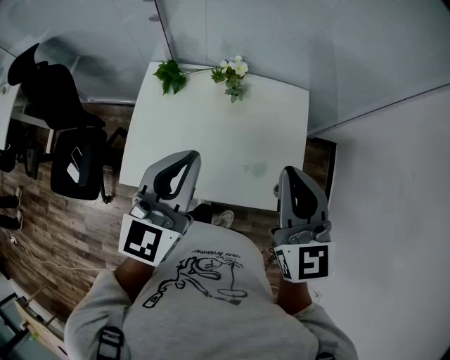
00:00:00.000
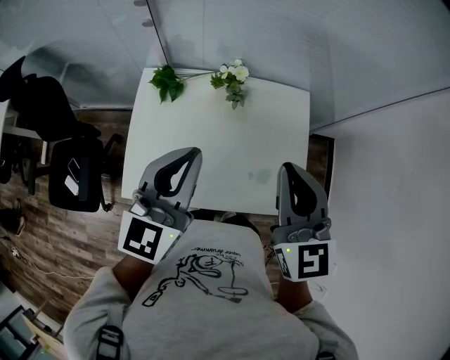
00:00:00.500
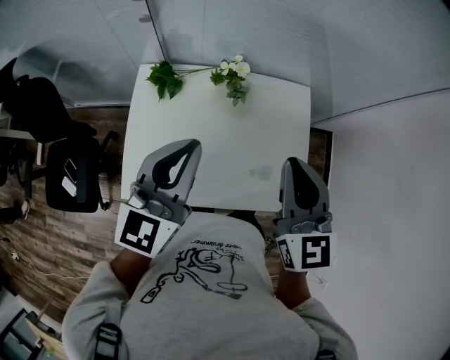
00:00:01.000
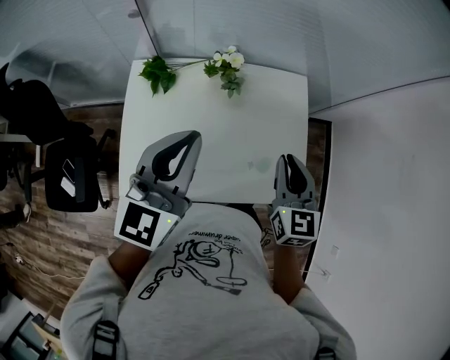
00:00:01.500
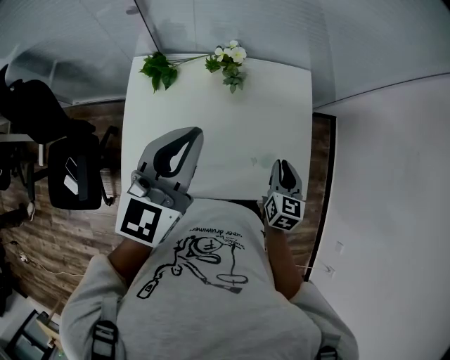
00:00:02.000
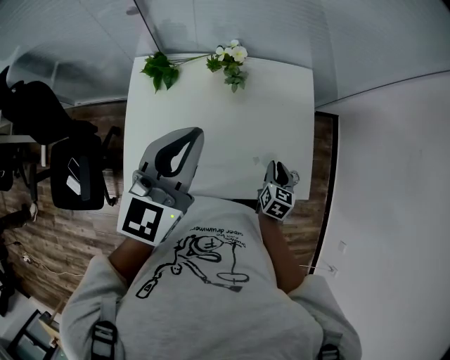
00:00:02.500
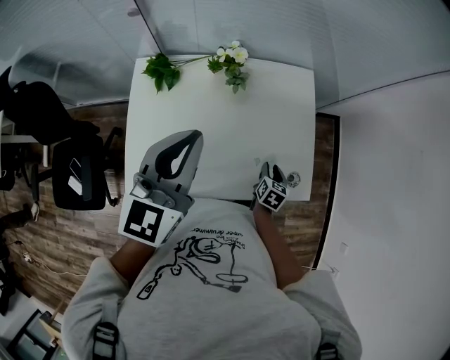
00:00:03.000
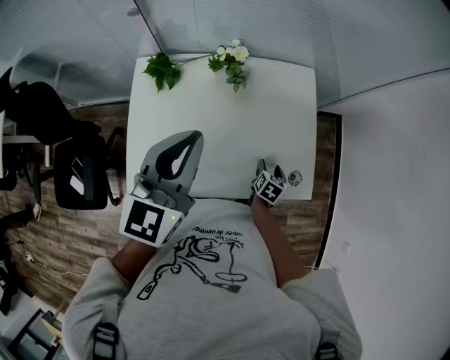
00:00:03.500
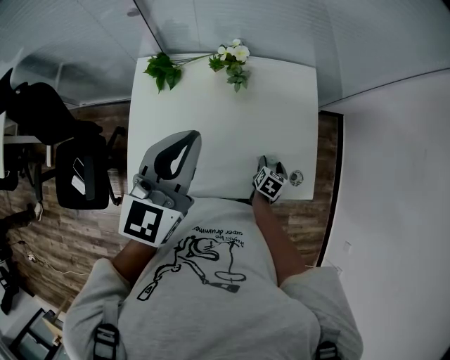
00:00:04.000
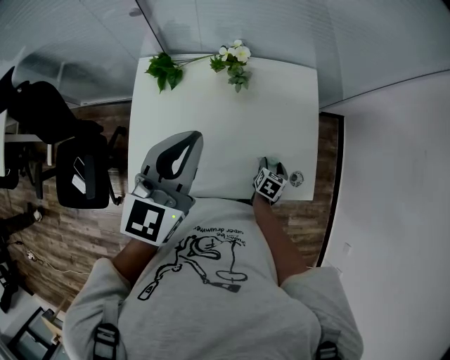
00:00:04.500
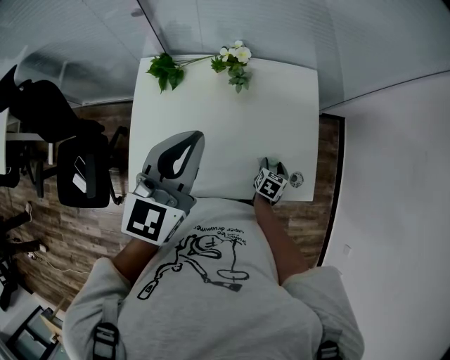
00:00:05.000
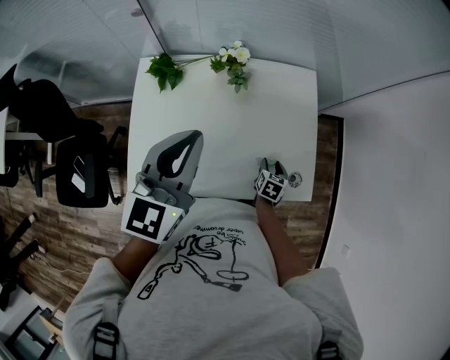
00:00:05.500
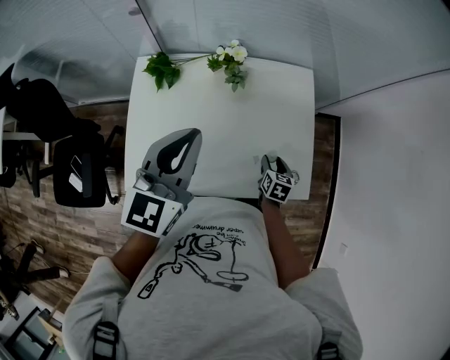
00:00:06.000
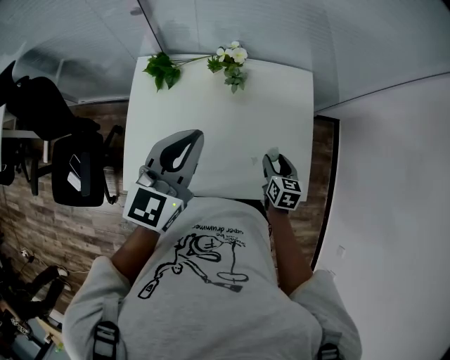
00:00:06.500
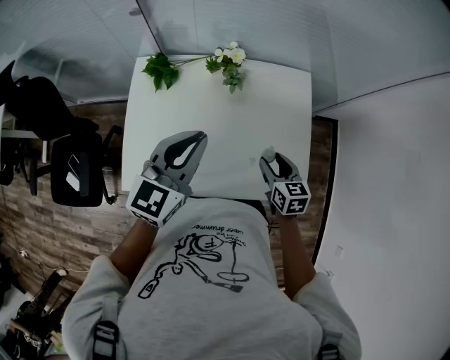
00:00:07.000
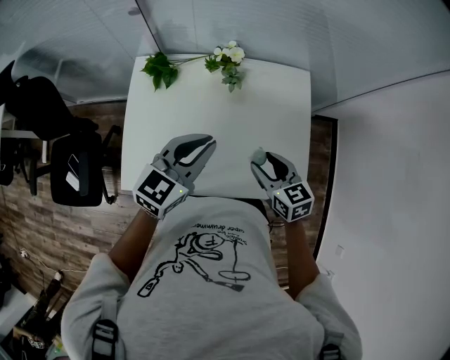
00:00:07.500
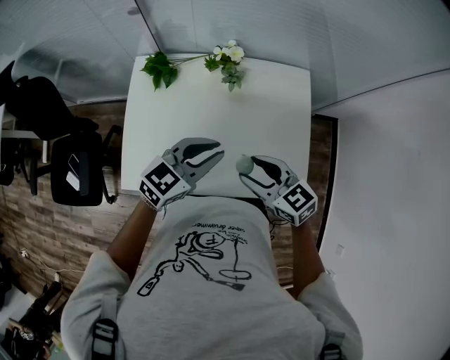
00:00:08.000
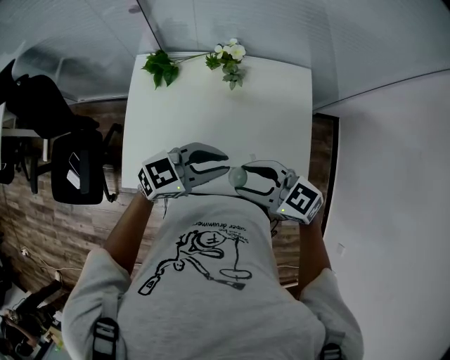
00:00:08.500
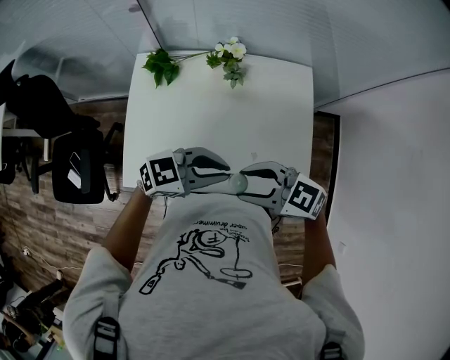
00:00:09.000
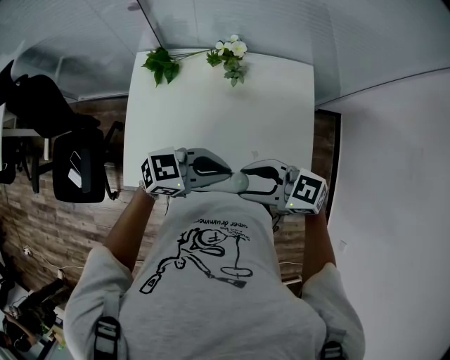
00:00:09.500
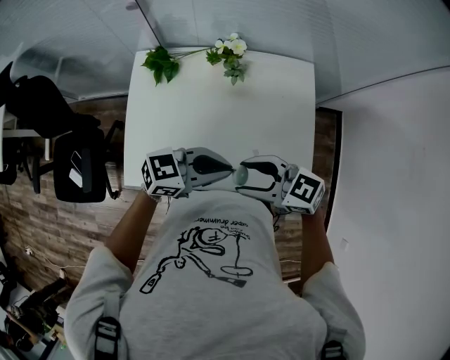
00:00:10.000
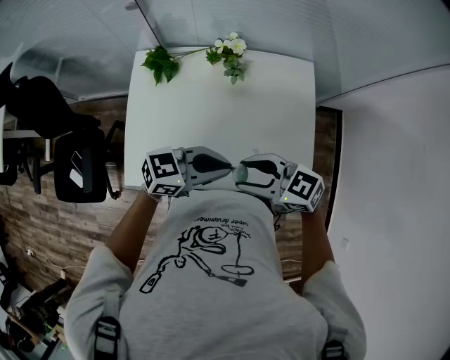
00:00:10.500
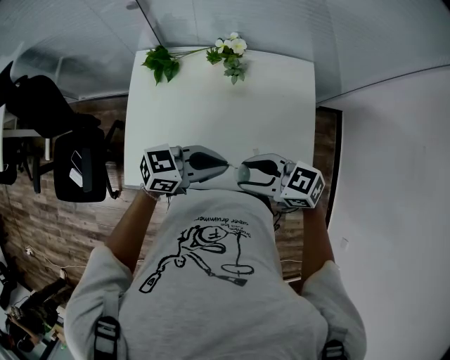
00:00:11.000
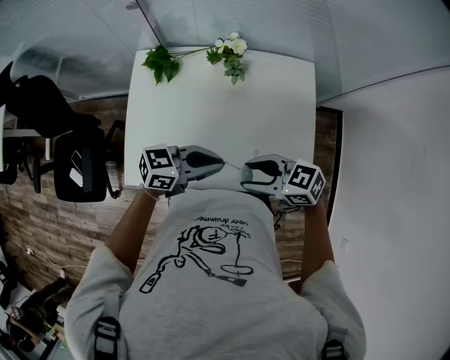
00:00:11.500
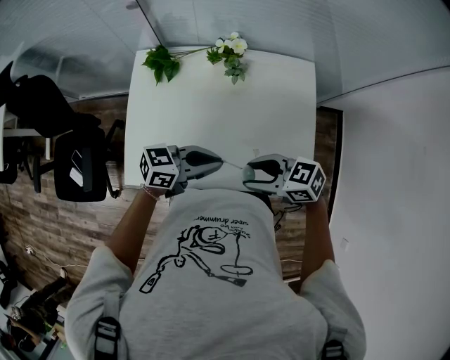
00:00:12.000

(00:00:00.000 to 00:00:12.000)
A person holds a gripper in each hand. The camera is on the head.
00:00:00.000 - 00:00:02.000: The left gripper moves forward, about 10 cm. The right gripper shifts about 30 cm downward, and turns by some 40 degrees.
00:00:02.000 - 00:00:04.000: The right gripper travels downward by some 20 cm, rotates about 30 degrees, and opens up.
00:00:04.000 - 00:00:06.000: The grippers move only a little.
00:00:06.000 - 00:00:08.000: The right gripper moves upward and to the left, approximately 25 cm, and turns by approximately 60 degrees; the left gripper goes about 15 cm downward and to the right, and turns by about 30 degrees.
00:00:08.000 - 00:00:10.000: The left gripper changes place by some 5 cm, and rotates approximately 30 degrees; the right gripper moves roughly 5 cm, and turns by some 20 degrees.
00:00:10.000 - 00:00:12.000: The right gripper goes some 5 cm downward; the left gripper ends up approximately 5 cm from where it was.

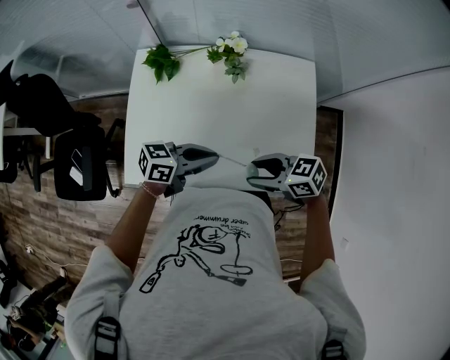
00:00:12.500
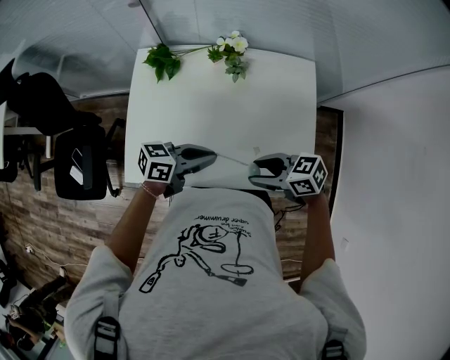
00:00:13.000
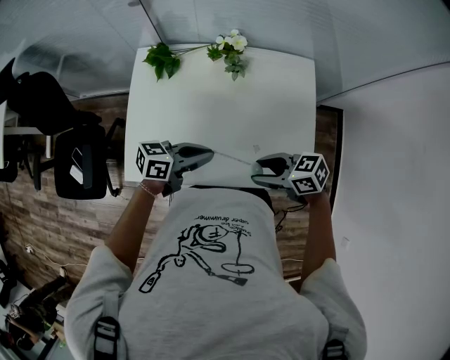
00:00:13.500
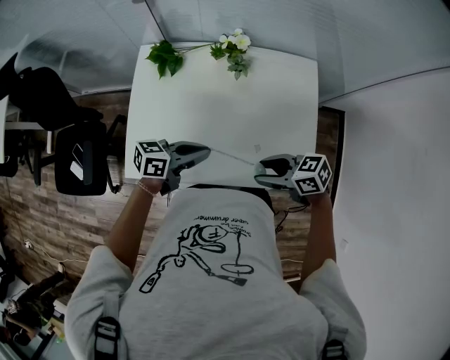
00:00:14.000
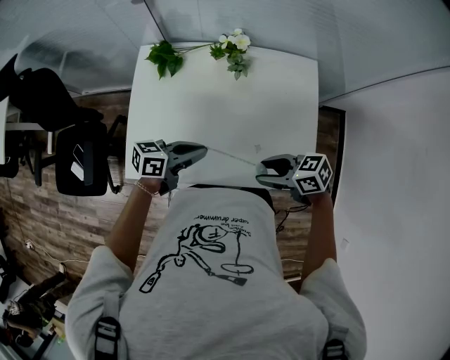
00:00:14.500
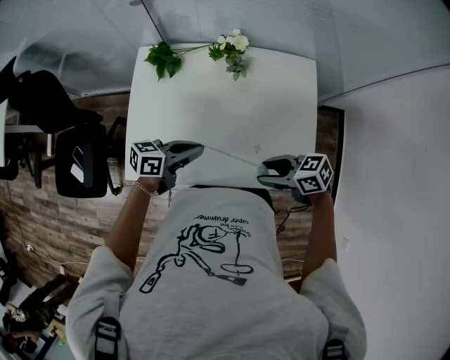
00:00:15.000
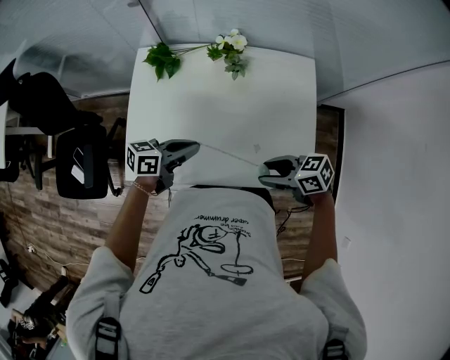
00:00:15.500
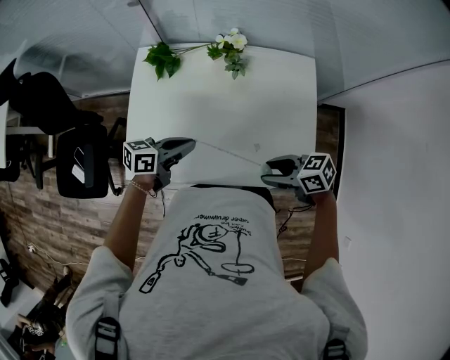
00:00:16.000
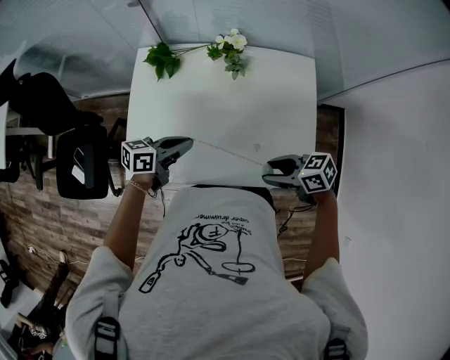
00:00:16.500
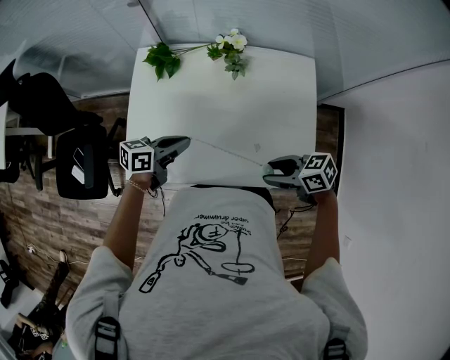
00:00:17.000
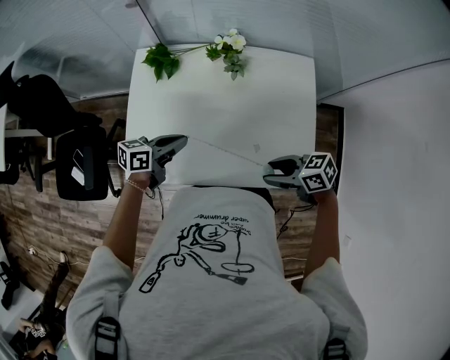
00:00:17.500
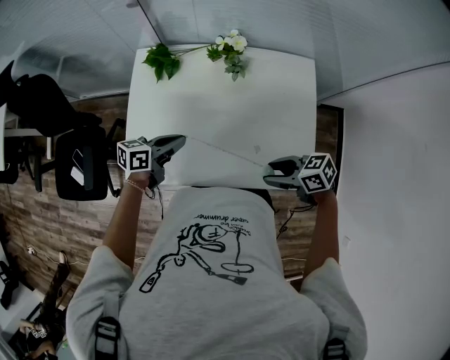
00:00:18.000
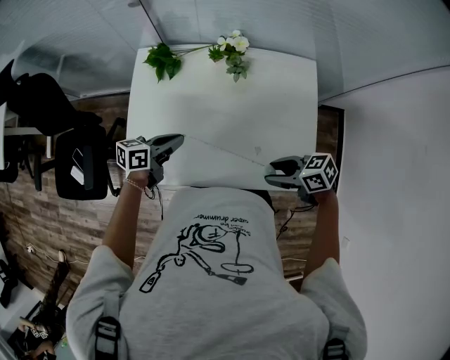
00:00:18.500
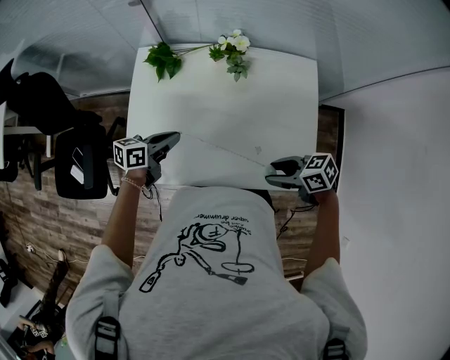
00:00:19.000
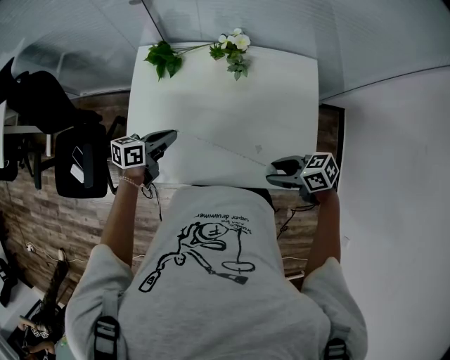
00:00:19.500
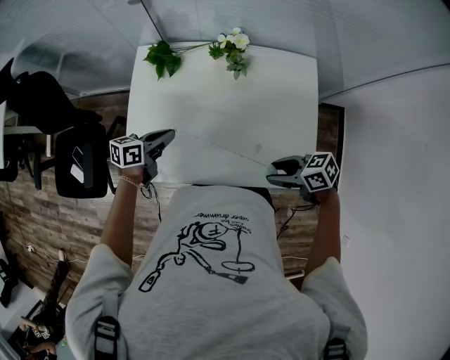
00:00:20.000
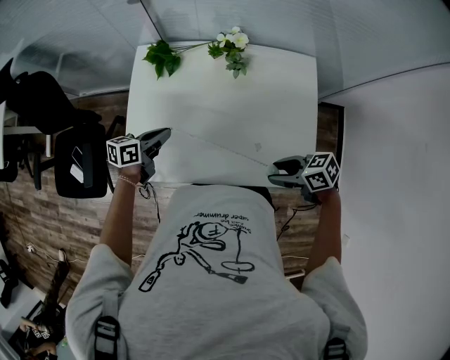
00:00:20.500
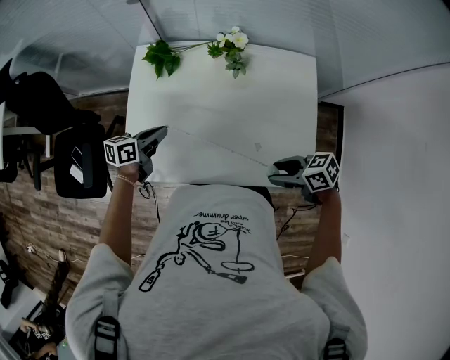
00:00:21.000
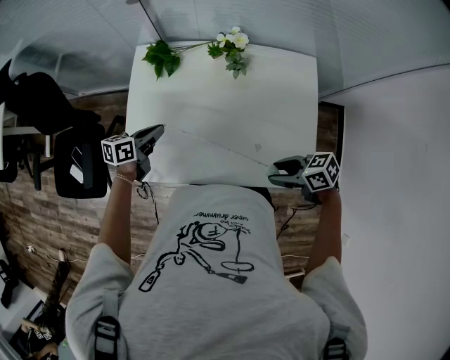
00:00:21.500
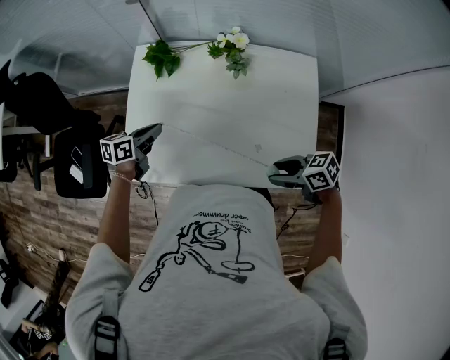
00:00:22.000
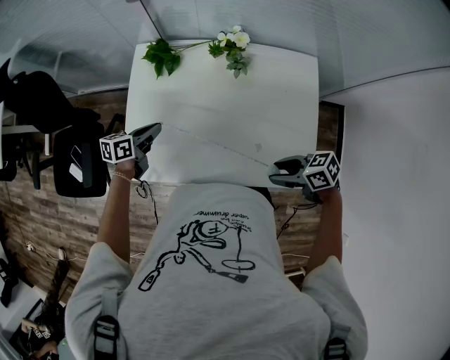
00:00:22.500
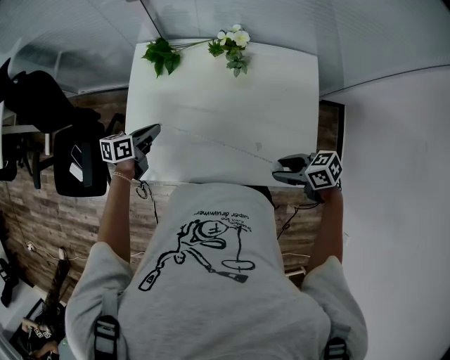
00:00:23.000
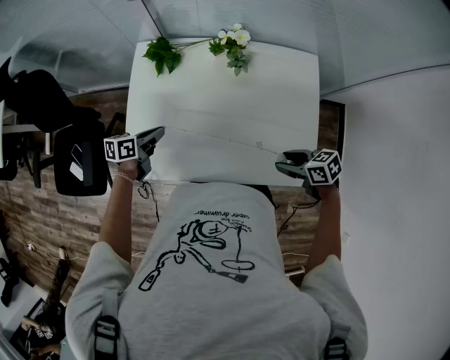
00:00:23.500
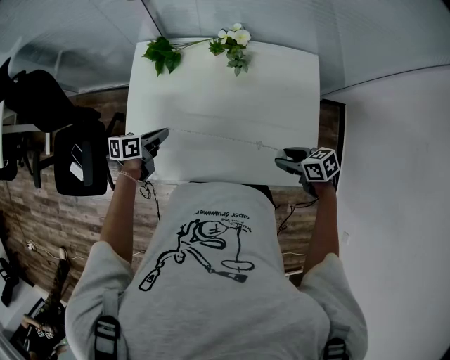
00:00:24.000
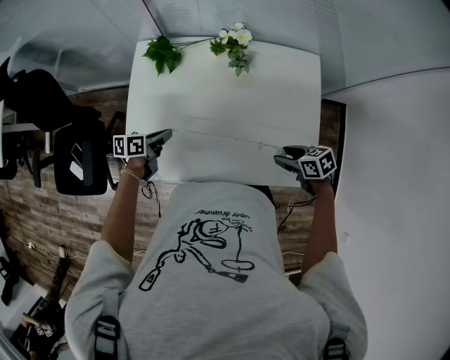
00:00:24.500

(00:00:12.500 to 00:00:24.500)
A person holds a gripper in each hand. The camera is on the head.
00:00:12.500 - 00:00:14.500: The grippers move only a little.
00:00:14.500 - 00:00:16.500: The grippers stay close to where they were, moving slightly.
00:00:16.500 - 00:00:18.500: The left gripper ends up some 5 cm from where it was.
00:00:18.500 - 00:00:20.500: The left gripper moves approximately 5 cm.
00:00:20.500 - 00:00:22.500: The grippers move only a little.
00:00:22.500 - 00:00:24.500: The right gripper is displaced downward by some 10 cm, and turns by some 20 degrees, while the left gripper heads downward, covering roughly 5 cm.

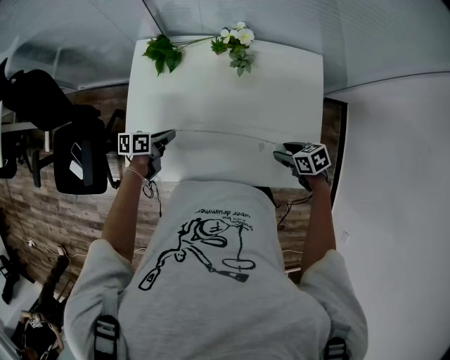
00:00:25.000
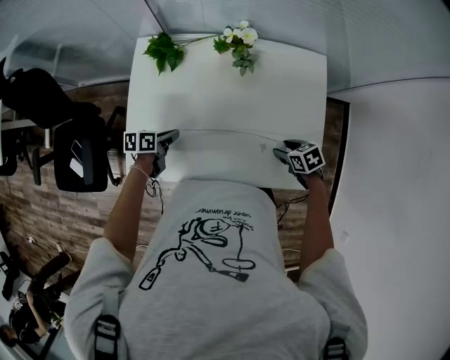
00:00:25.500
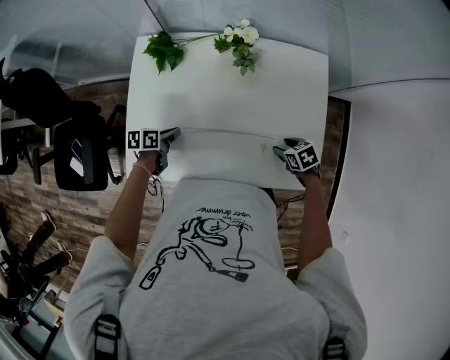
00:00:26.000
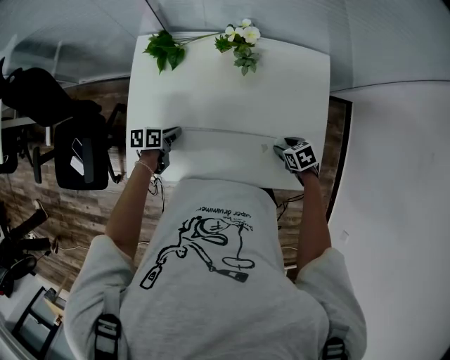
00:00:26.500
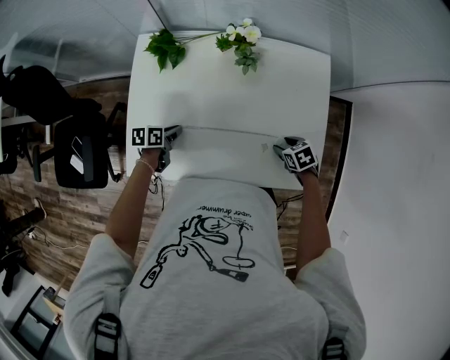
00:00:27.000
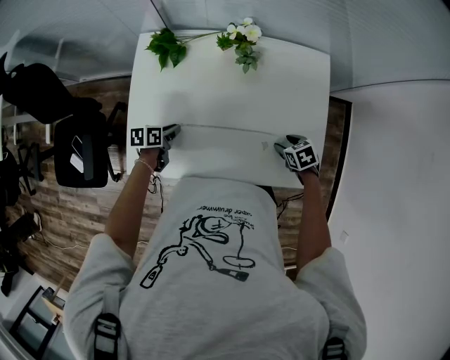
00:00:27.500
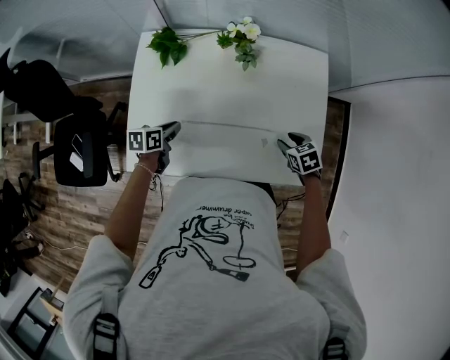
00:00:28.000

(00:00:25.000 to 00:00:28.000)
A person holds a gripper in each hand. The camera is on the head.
00:00:25.000 - 00:00:26.500: The right gripper shifts roughly 5 cm downward.
00:00:26.500 - 00:00:28.000: The grippers move only a little.
